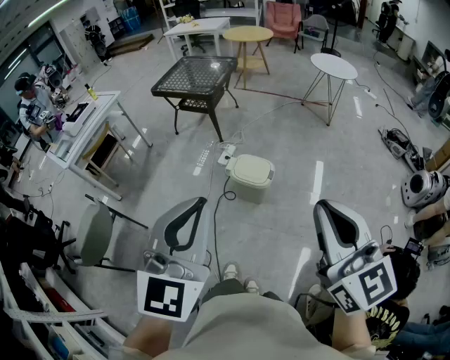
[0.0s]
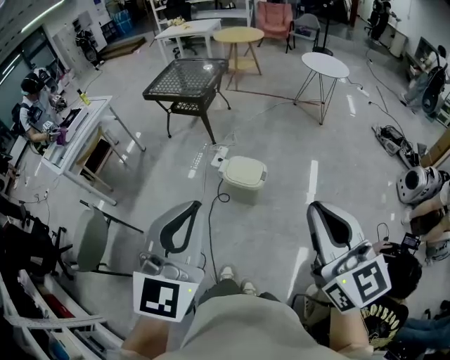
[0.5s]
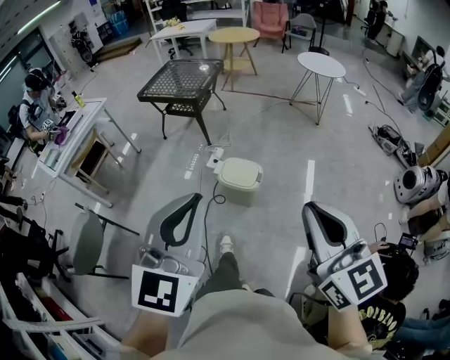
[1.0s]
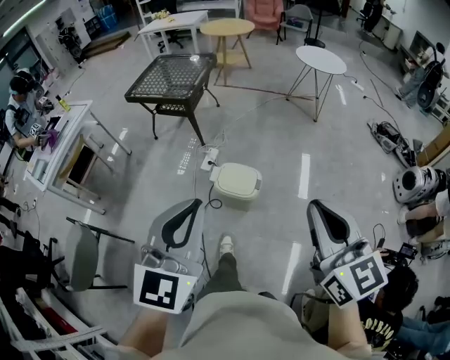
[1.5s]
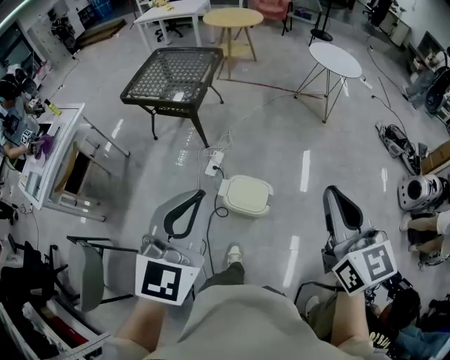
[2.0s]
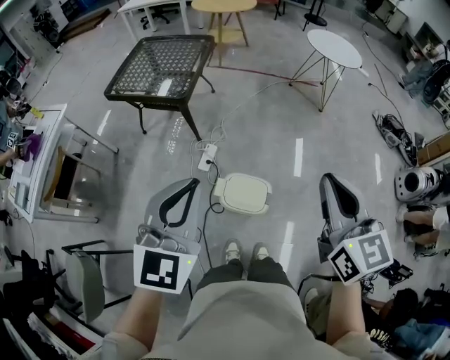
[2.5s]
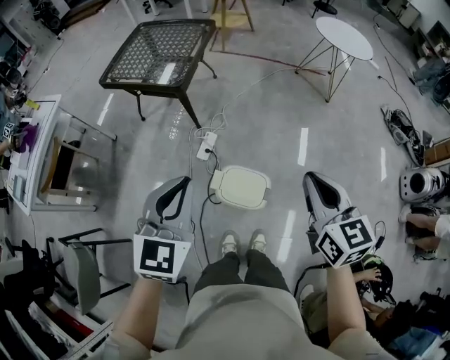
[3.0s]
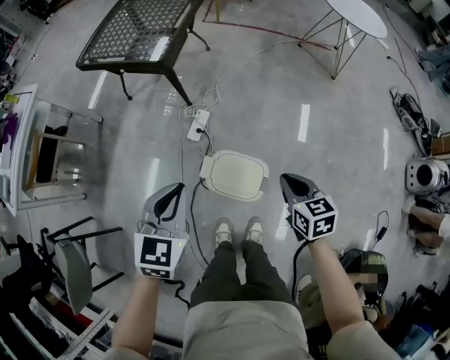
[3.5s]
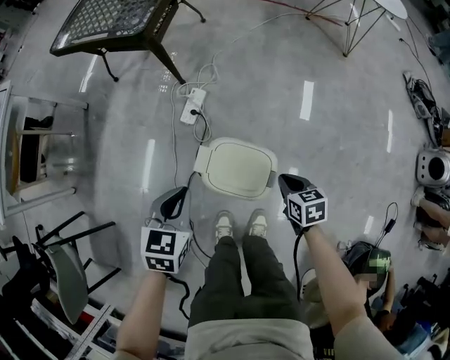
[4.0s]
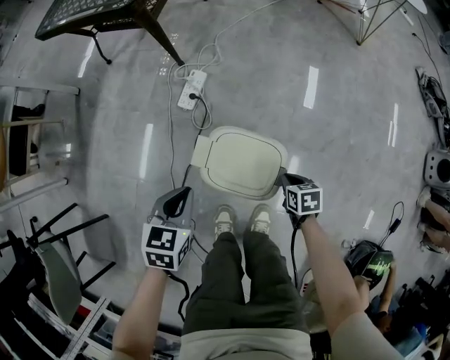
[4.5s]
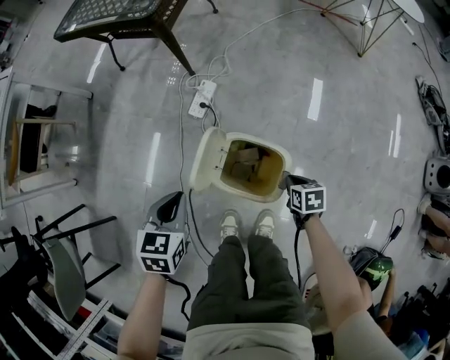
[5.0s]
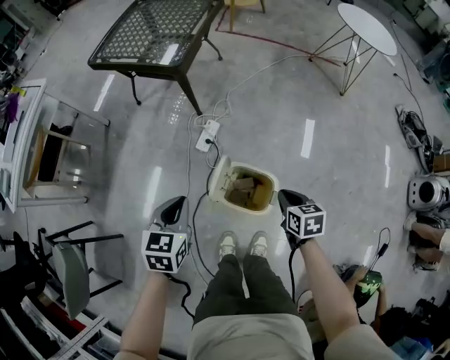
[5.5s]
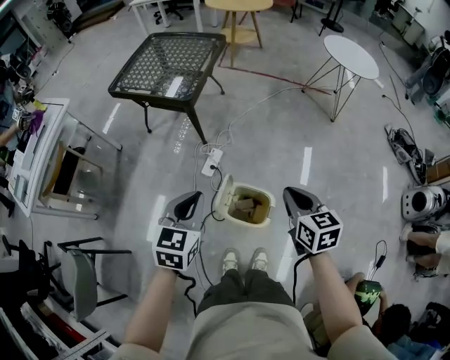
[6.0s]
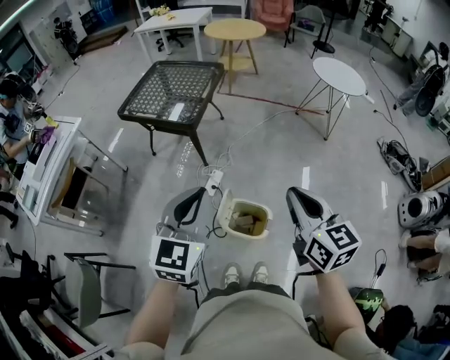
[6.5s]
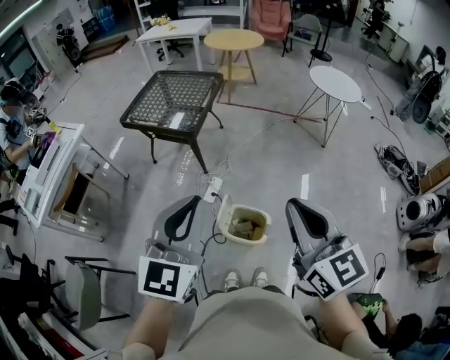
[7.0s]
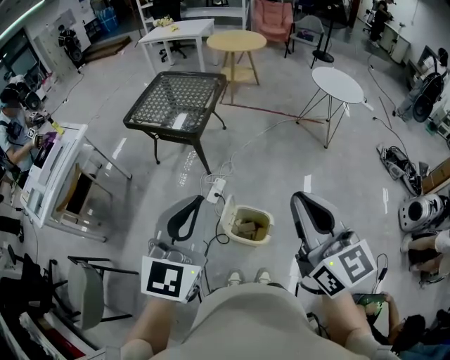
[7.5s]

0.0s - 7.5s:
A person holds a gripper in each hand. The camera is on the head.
0.0s - 2.0s: The two grippers go some 30 cm forward.
2.0s - 4.0s: The grippers both shift downward by about 60 cm. The left gripper tips its fingers downward by roughly 30 degrees, while the right gripper points its fingers some 40 degrees further downward.
4.0s - 5.5s: The right gripper goes approximately 10 cm upward, while the left gripper shifts approximately 10 cm upward and to the left.
5.5s - 7.5s: Both grippers travel together upward, approximately 50 cm. The right gripper tilts its fingers about 50 degrees upward. The left gripper angles its fingers upward, by roughly 40 degrees.

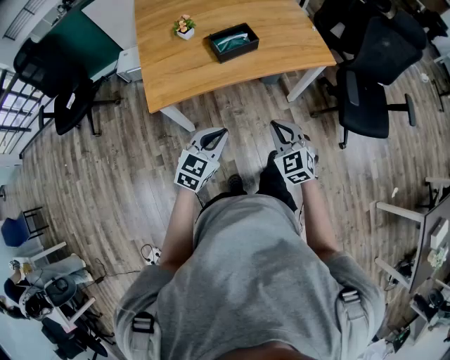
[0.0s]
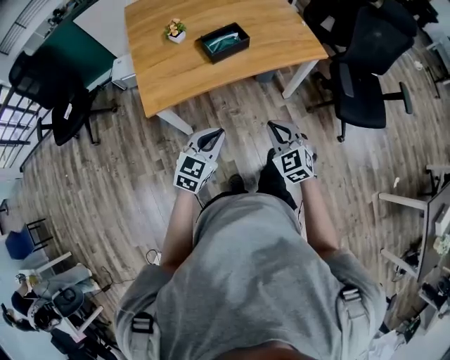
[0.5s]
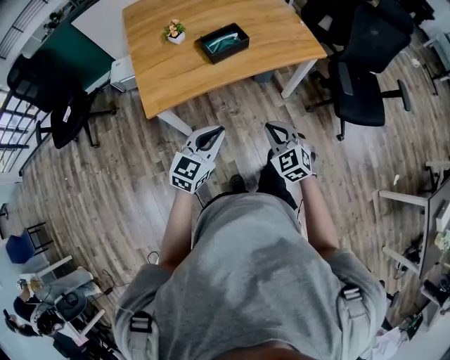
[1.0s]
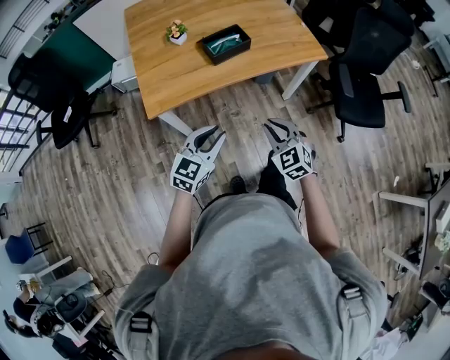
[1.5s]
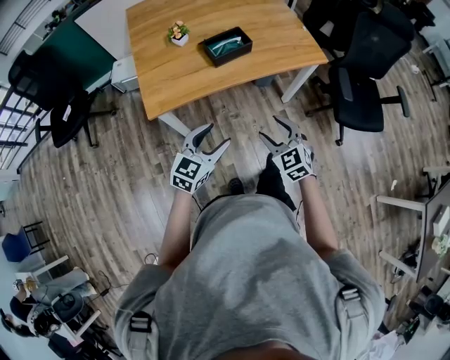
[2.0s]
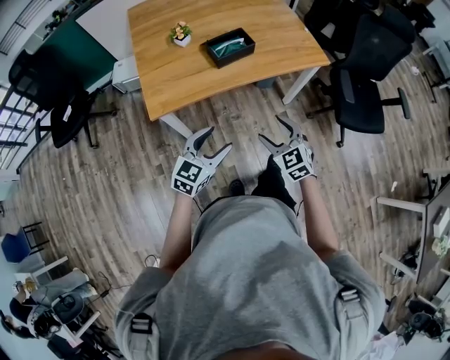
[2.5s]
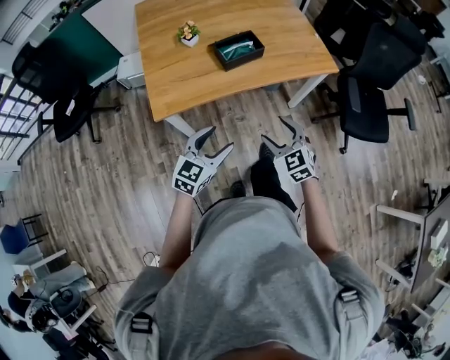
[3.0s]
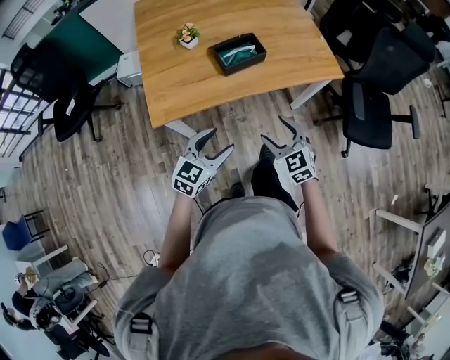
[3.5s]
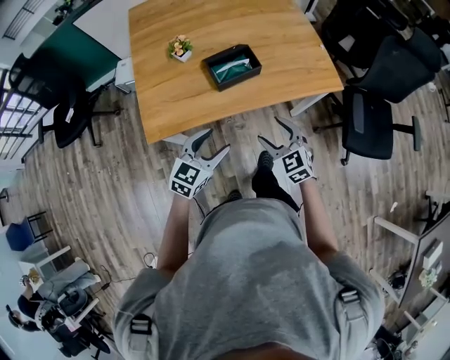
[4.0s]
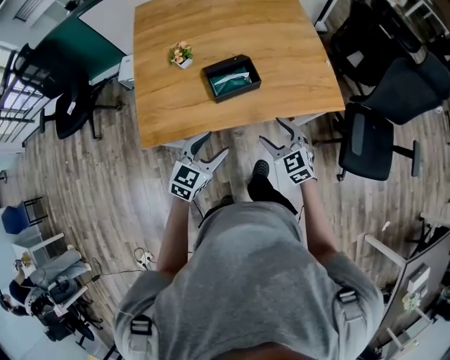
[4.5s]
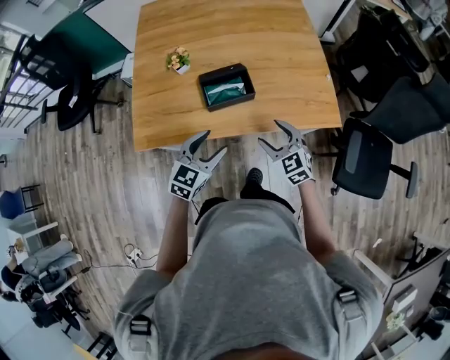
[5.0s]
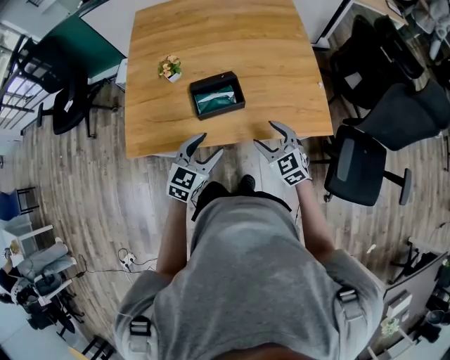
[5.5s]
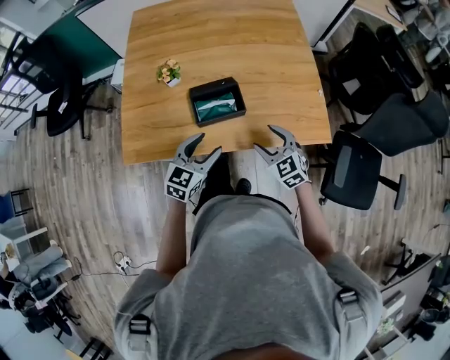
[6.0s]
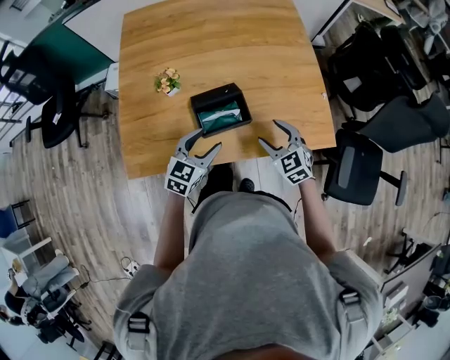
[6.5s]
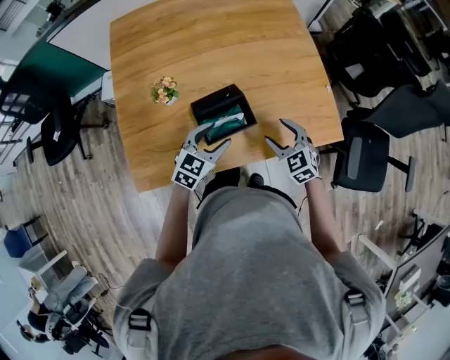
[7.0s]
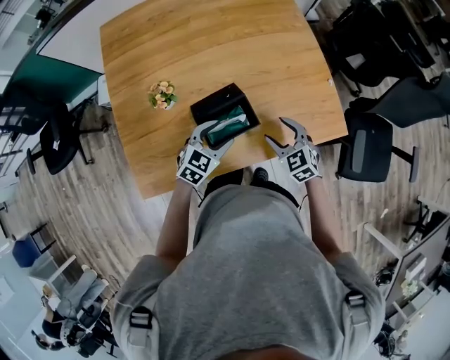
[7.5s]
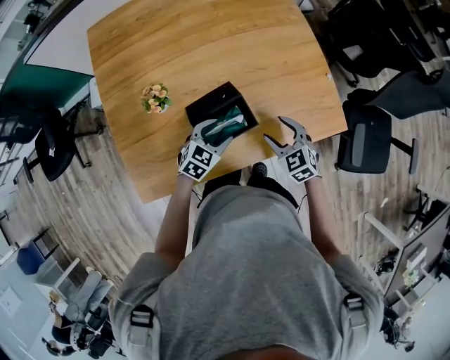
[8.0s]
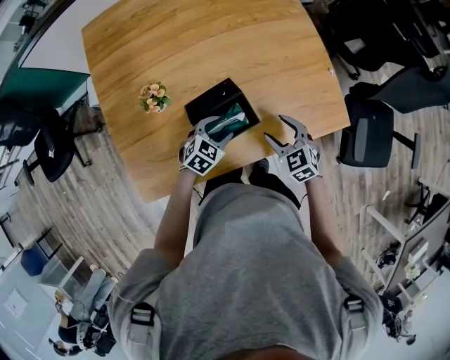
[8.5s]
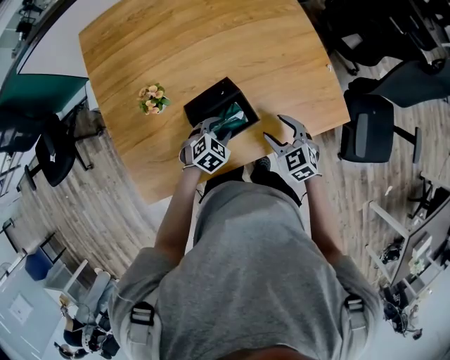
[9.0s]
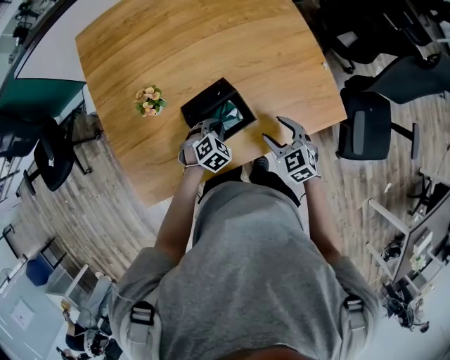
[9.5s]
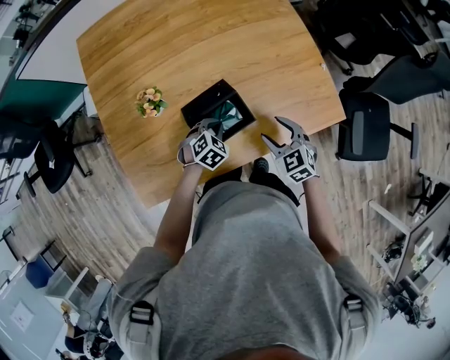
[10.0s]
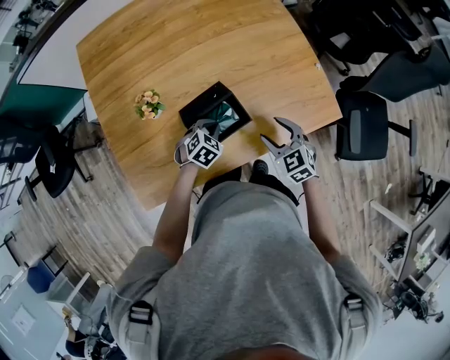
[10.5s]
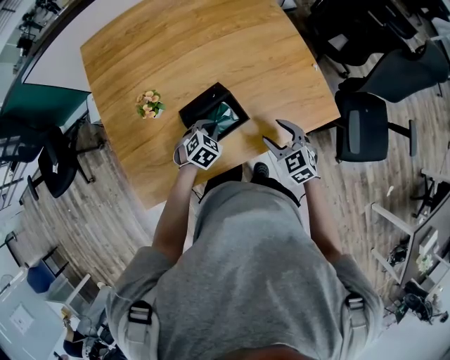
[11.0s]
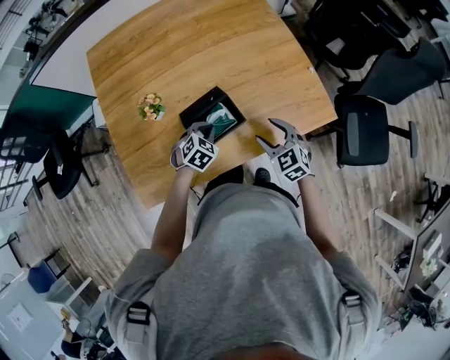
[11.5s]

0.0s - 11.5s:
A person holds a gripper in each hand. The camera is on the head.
0.0s - 2.0s: The left gripper opens its fingers. Meanwhile the right gripper opens.
2.0s - 4.0s: Both grippers travel together forward, some 15 cm.
4.0s - 6.0s: Both grippers move forward and to the right, roughly 20 cm.
6.0s - 7.5s: The right gripper shifts roughly 10 cm forward. The left gripper travels forward and downward by some 15 cm, and rotates about 30 degrees.
7.5s - 9.5s: The left gripper heads downward, covering about 10 cm, changes its angle by some 30 degrees, and closes up.
9.5s - 11.5s: The left gripper moves upward, roughly 5 cm.

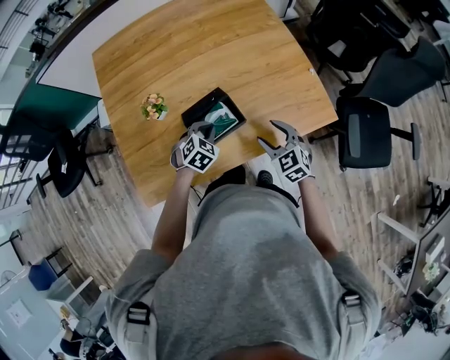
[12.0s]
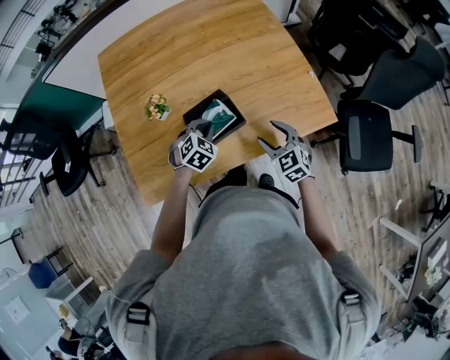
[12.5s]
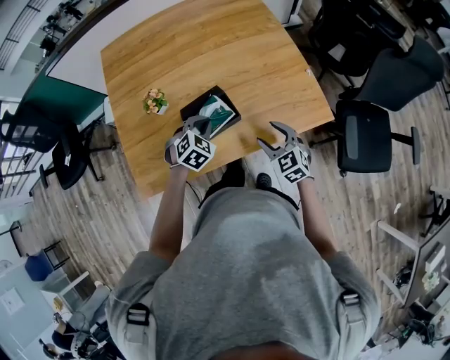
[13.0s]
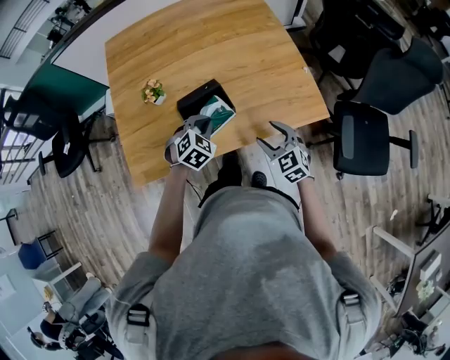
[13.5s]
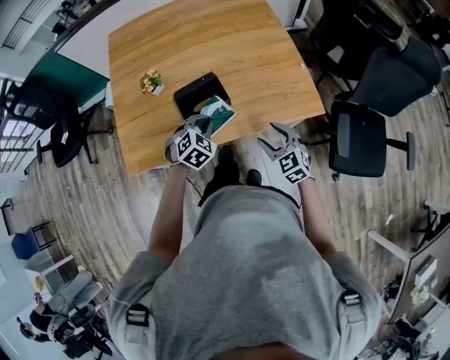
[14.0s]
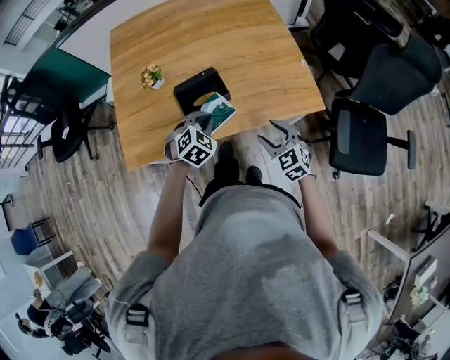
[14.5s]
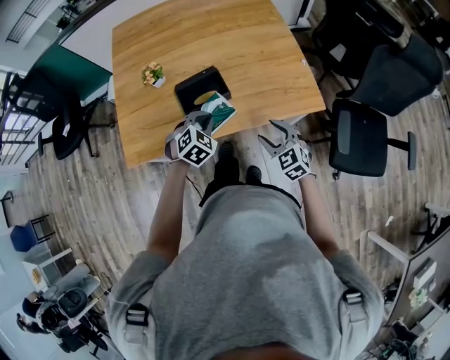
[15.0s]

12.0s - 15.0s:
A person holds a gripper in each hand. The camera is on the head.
12.0s - 13.5s: The left gripper travels upward and backward by roughly 10 cm, while the right gripper shifts some 5 cm backward.
13.5s - 15.0s: The two grippers go roughly 5 cm backward.

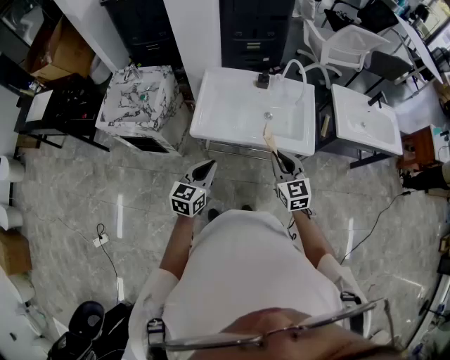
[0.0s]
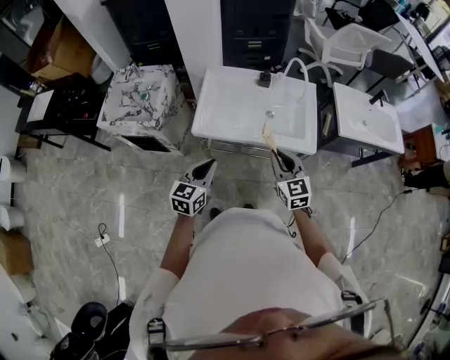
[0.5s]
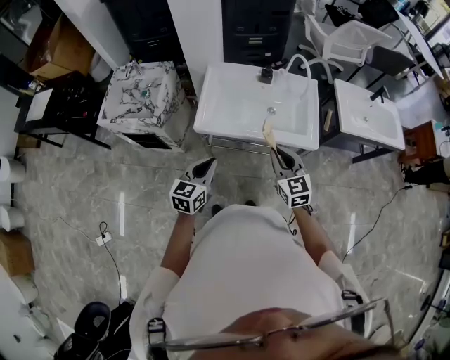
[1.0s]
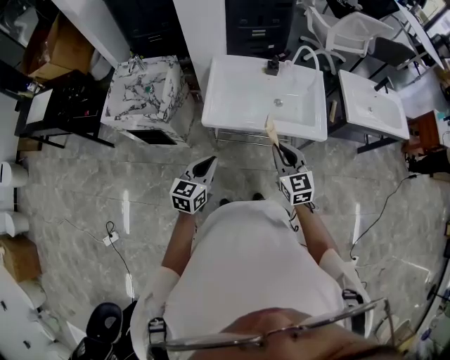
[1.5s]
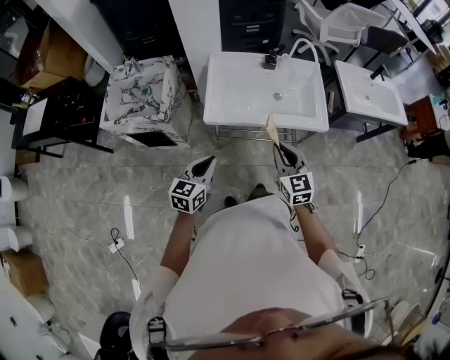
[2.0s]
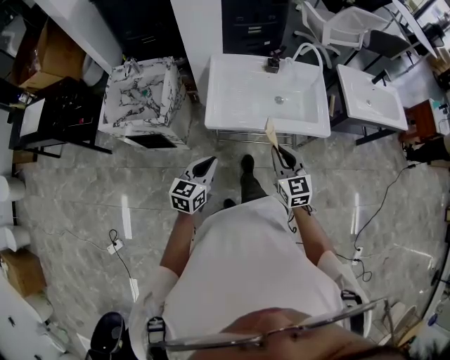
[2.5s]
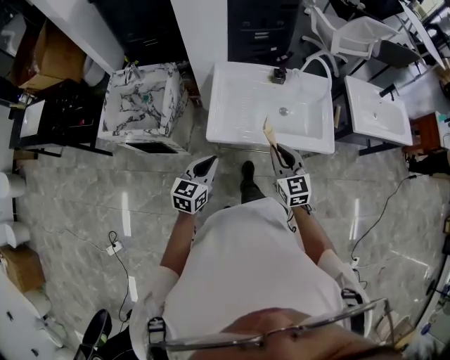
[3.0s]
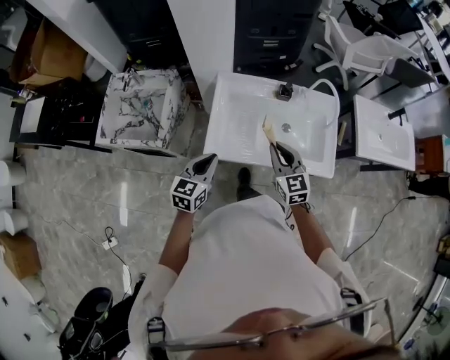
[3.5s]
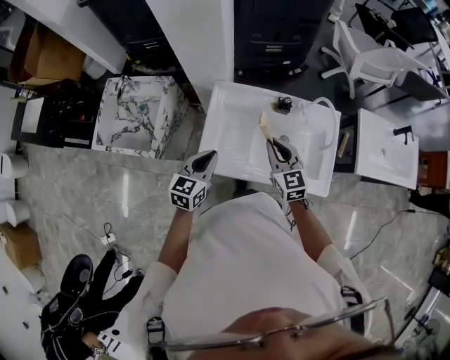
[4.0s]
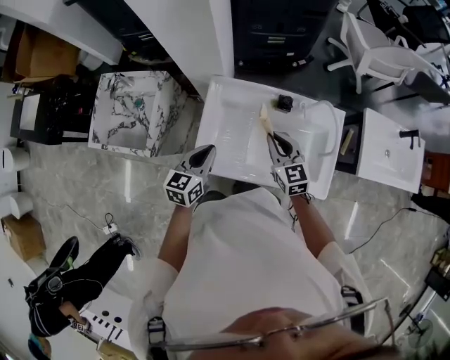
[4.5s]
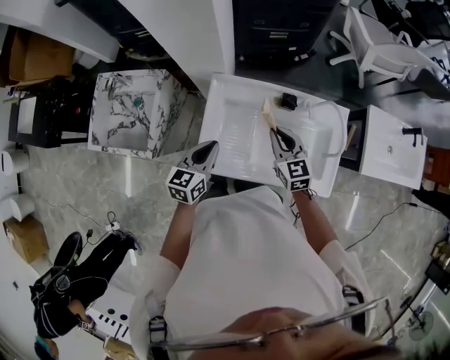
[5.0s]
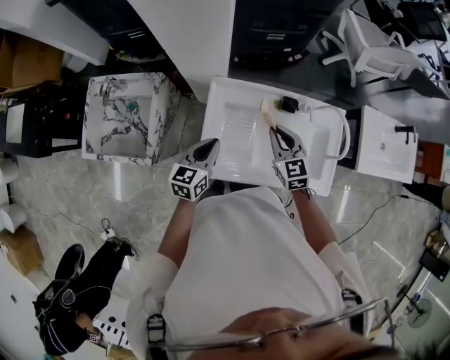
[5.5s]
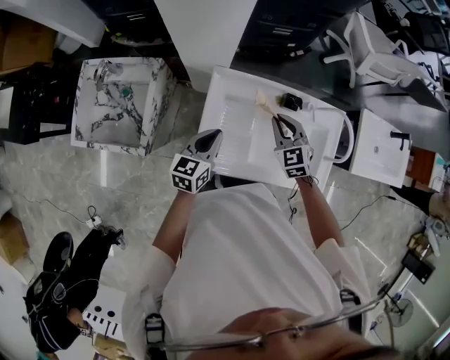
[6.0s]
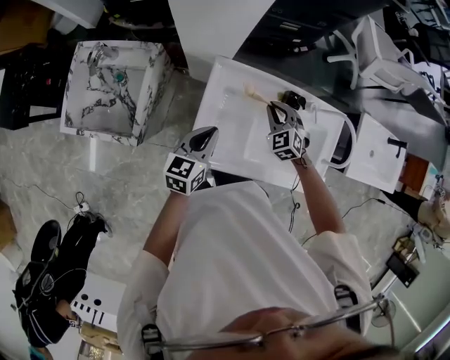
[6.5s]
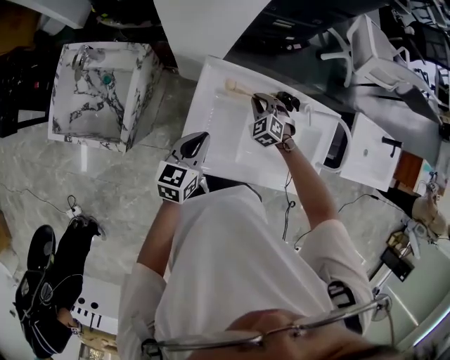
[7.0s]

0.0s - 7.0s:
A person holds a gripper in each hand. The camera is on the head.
0.0s - 2.0s: The left gripper shifts roughly 10 cm to the left. The right gripper is displaced to the left and backward by approximately 10 cm.
2.0s - 3.5s: The two grippers go about 20 cm forward.
3.5s - 5.0s: The grippers both shift forward by about 15 cm.
5.0s - 7.0s: The right gripper shifts some 20 cm downward and forward, and twists some 40 degrees counterclockwise, seen from behind; the left gripper shifts approximately 5 cm downward.
